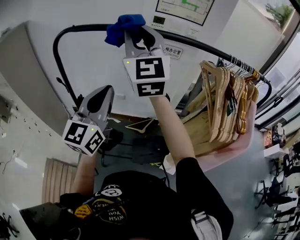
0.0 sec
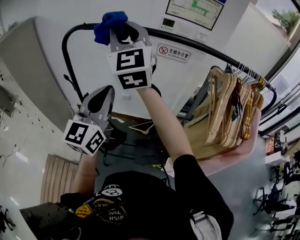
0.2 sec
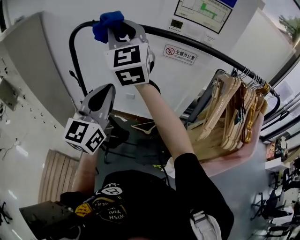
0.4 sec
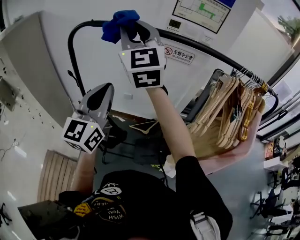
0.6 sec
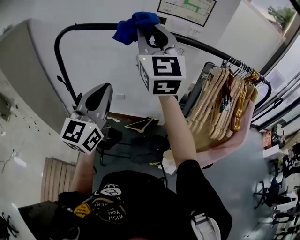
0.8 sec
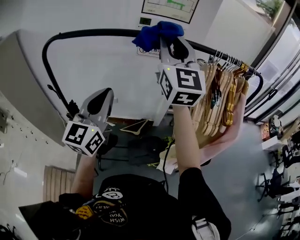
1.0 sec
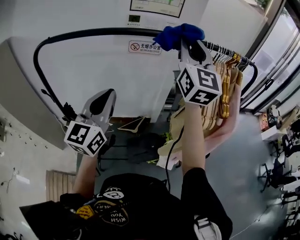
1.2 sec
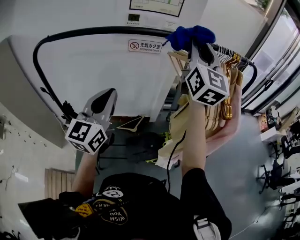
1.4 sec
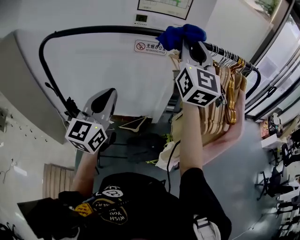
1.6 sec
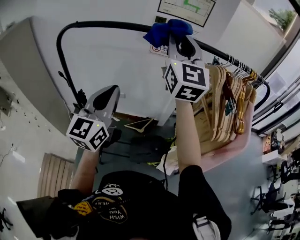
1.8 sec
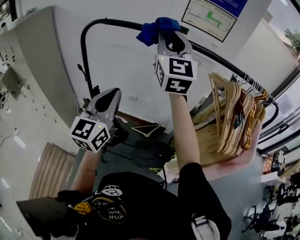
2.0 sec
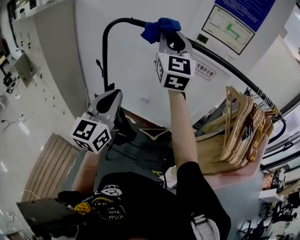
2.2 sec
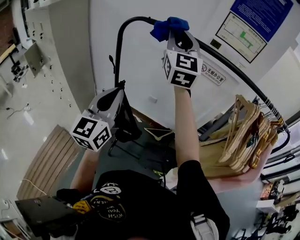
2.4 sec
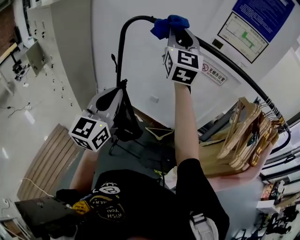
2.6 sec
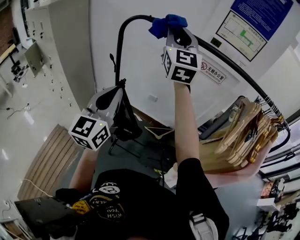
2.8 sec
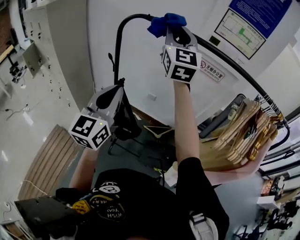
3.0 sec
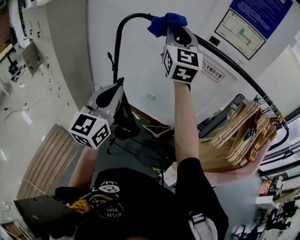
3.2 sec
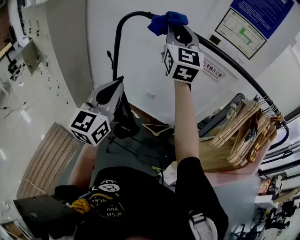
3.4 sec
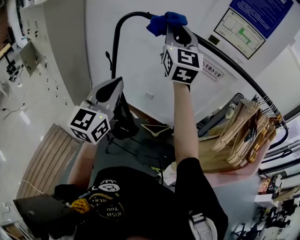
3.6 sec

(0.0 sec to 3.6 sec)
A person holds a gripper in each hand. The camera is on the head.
0.0 sec - 1.8 sec: The right gripper moves left and right over roughly 40 cm, changing direction 2 times. The left gripper swings left and right, roughly 15 cm each way, with 2 reversals.
1.8 sec - 3.6 sec: Both grippers move to the left, about 20 cm.

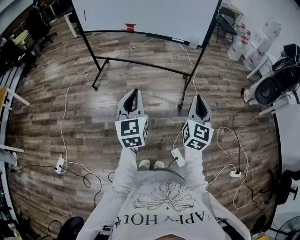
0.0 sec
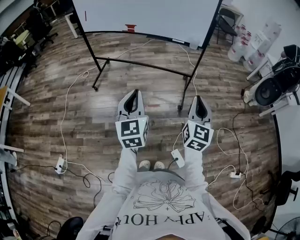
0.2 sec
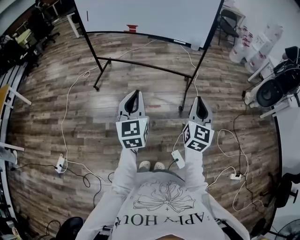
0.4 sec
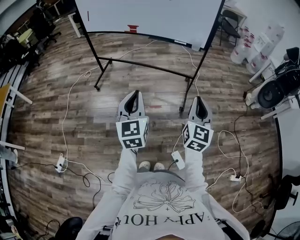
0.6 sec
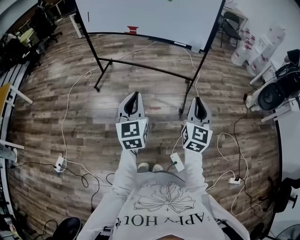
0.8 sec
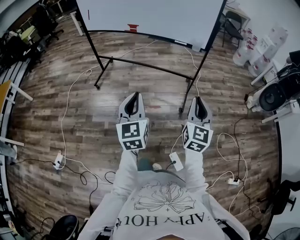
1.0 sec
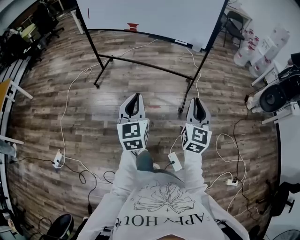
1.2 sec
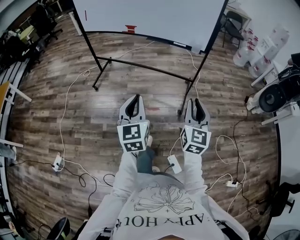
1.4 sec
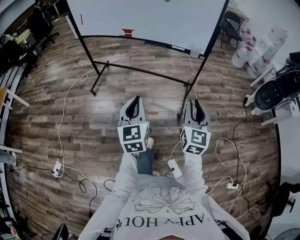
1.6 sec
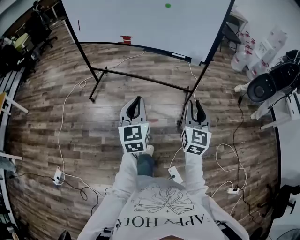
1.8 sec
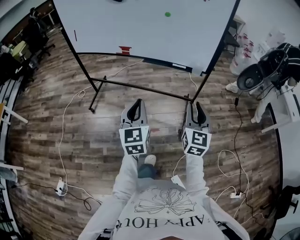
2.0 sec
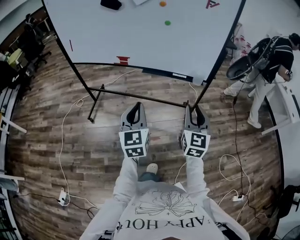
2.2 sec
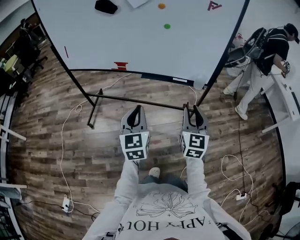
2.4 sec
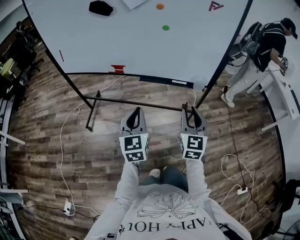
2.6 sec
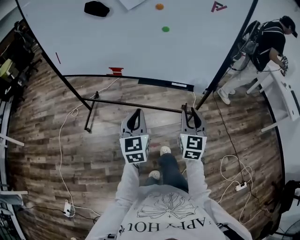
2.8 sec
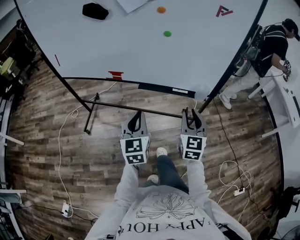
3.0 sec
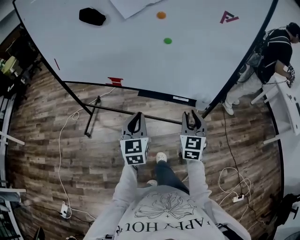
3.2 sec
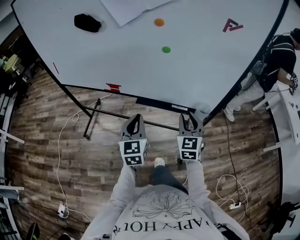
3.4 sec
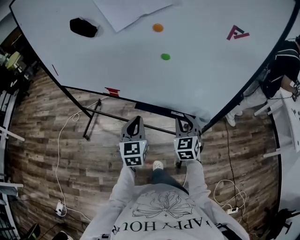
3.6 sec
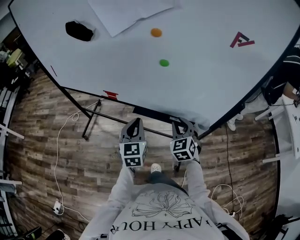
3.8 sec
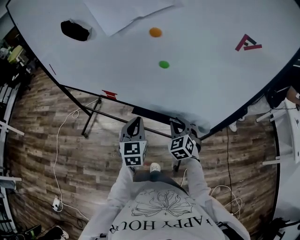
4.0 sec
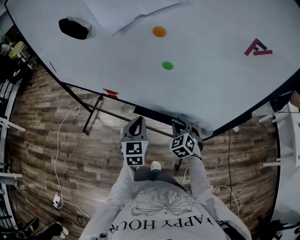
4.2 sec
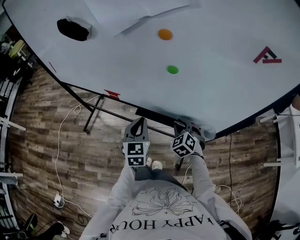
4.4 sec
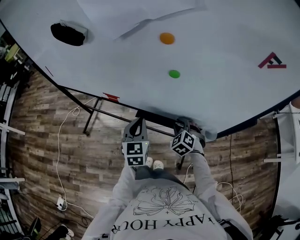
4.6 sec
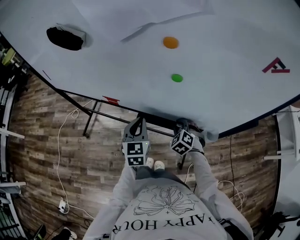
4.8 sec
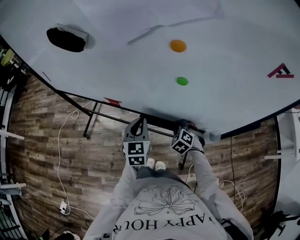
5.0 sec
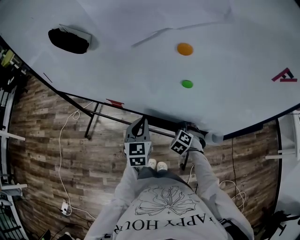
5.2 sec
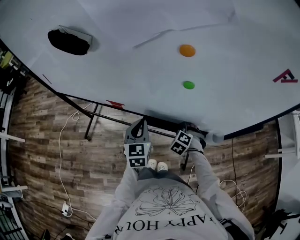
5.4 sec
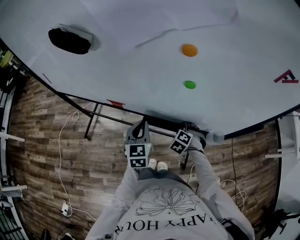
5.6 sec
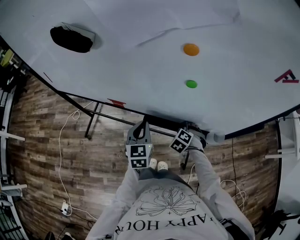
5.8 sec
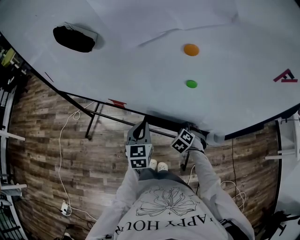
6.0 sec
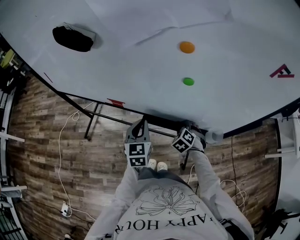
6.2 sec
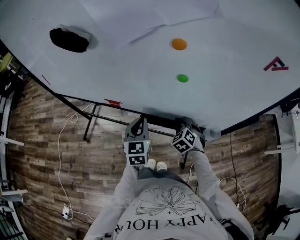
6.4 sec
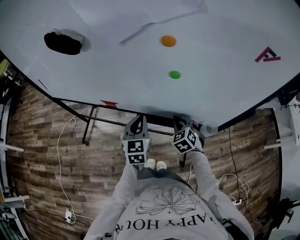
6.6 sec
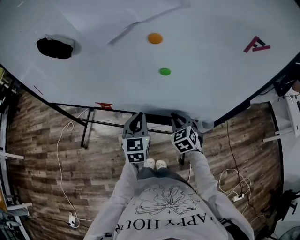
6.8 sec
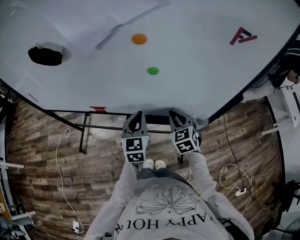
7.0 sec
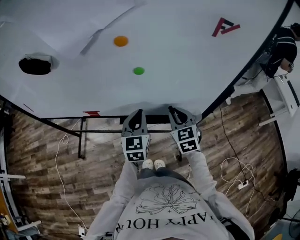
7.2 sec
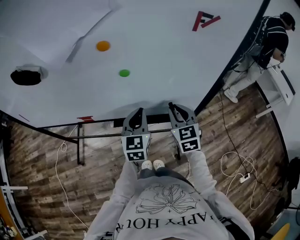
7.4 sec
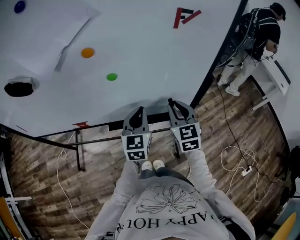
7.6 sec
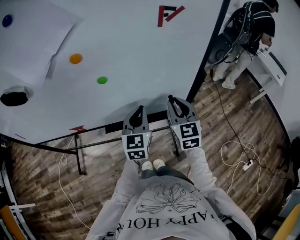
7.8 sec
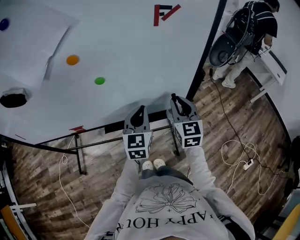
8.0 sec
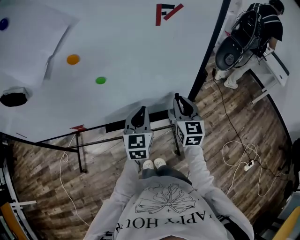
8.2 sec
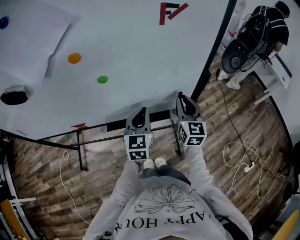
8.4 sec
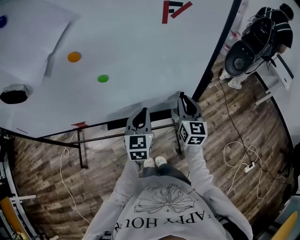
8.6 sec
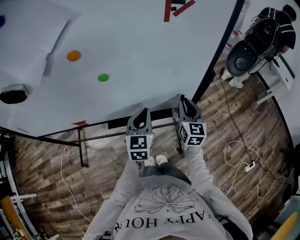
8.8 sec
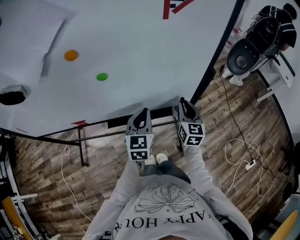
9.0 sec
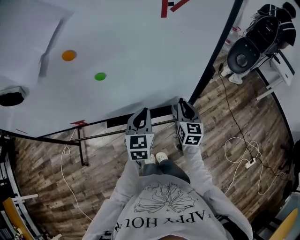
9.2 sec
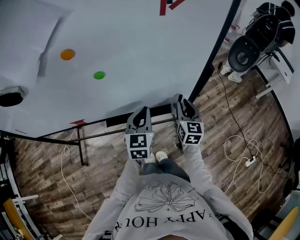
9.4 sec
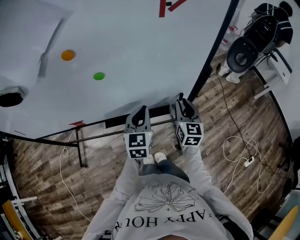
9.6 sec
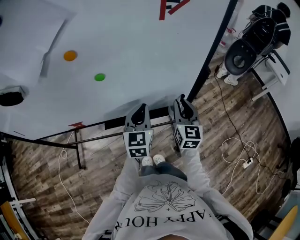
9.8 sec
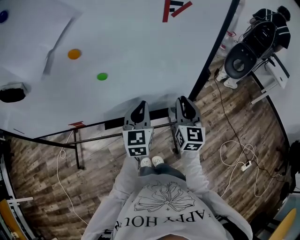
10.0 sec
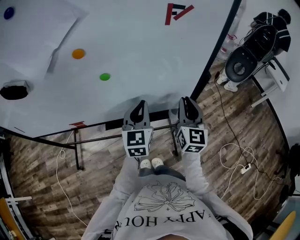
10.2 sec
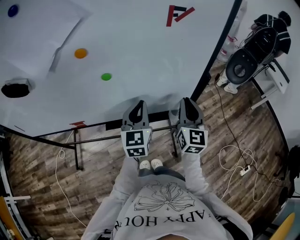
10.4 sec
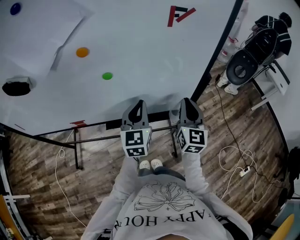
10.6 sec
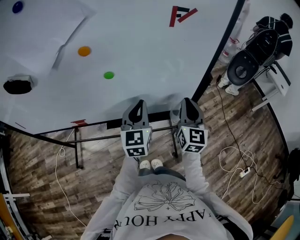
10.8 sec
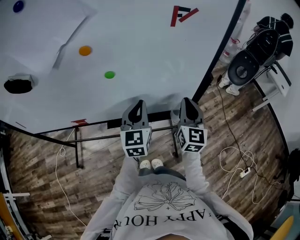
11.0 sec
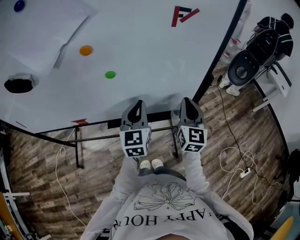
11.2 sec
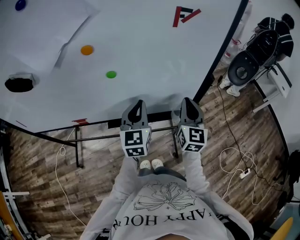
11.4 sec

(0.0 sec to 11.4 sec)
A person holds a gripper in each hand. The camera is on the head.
0.0 sec - 1.4 sec: The left gripper ends up approximately 5 cm from where it was. The right gripper travels forward by about 5 cm.
1.4 sec - 2.8 sec: The two grippers go some 35 cm forward.
2.8 sec - 4.2 sec: The right gripper heads forward and downward, covering some 30 cm, and turns by approximately 50 degrees, while the left gripper shifts approximately 25 cm forward.
4.2 sec - 5.6 sec: The right gripper is displaced downward by about 10 cm, and turns by some 30 degrees, while the left gripper shifts roughly 10 cm forward and to the left.
5.6 sec - 7.2 sec: The left gripper travels to the right and upward by approximately 15 cm, while the right gripper shifts some 20 cm upward, and angles its fingers upward, by about 40 degrees.
7.2 sec - 8.6 sec: Both grippers travel together to the right, about 10 cm. The right gripper turns by some 40 degrees.
8.6 sec - 10.0 sec: The right gripper moves roughly 5 cm downward and comes back.
10.0 sec - 11.4 sec: The grippers stay close to where they were, moving slightly.

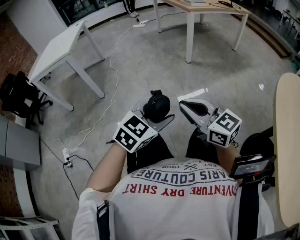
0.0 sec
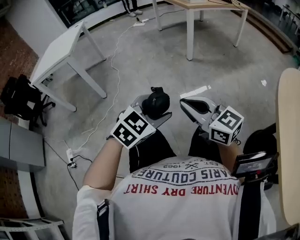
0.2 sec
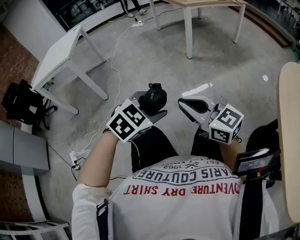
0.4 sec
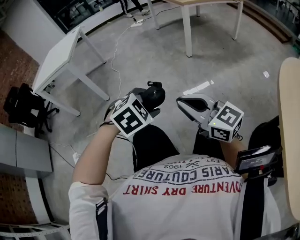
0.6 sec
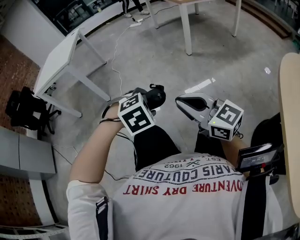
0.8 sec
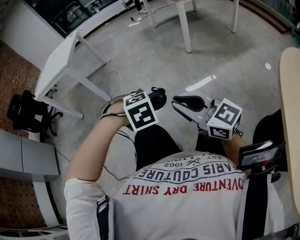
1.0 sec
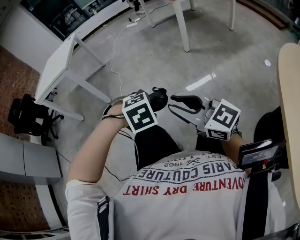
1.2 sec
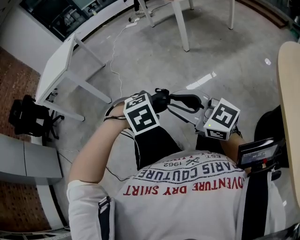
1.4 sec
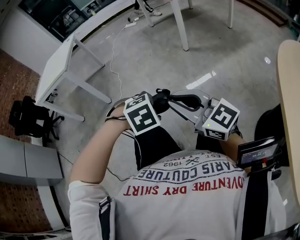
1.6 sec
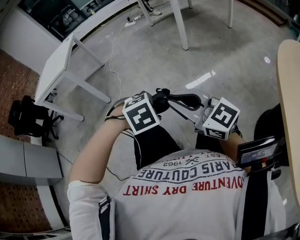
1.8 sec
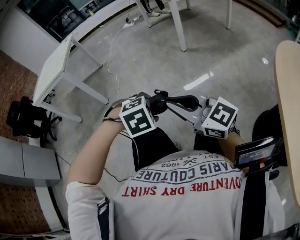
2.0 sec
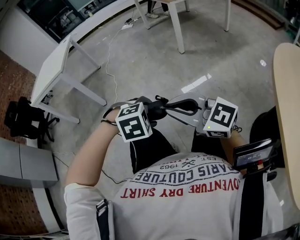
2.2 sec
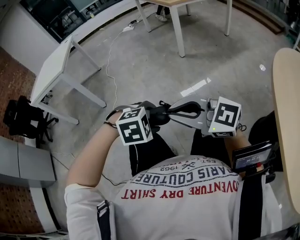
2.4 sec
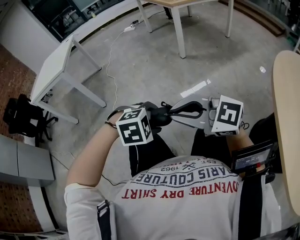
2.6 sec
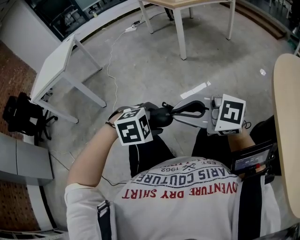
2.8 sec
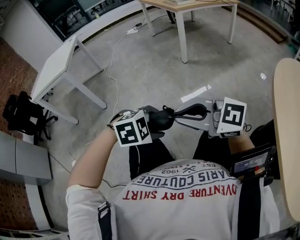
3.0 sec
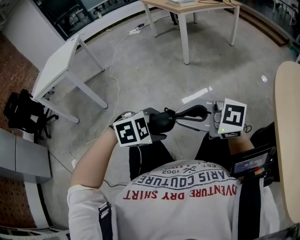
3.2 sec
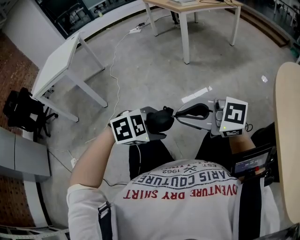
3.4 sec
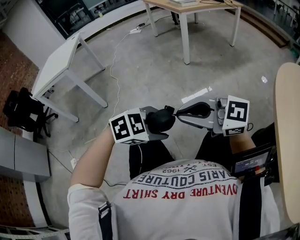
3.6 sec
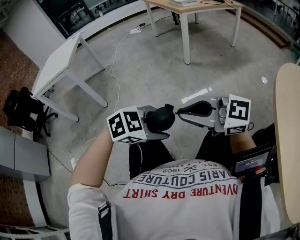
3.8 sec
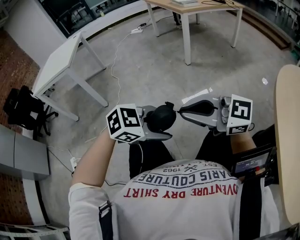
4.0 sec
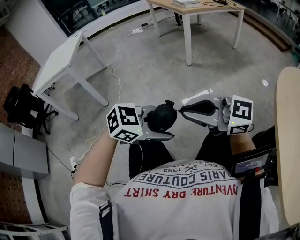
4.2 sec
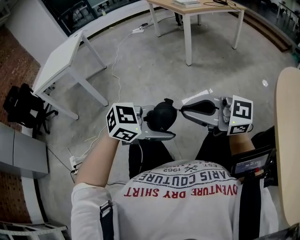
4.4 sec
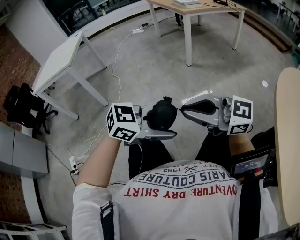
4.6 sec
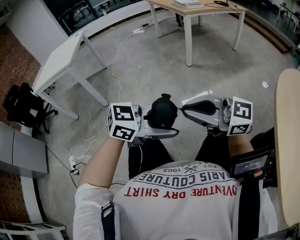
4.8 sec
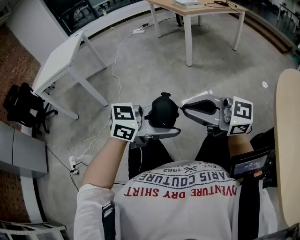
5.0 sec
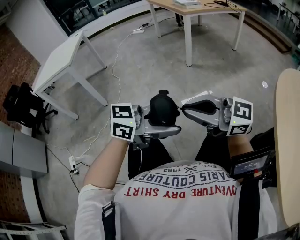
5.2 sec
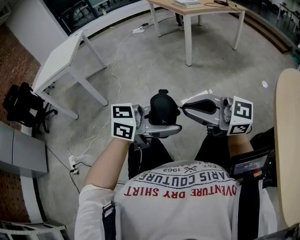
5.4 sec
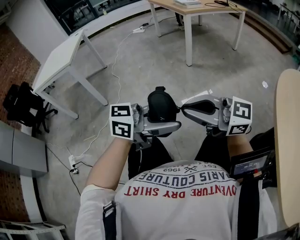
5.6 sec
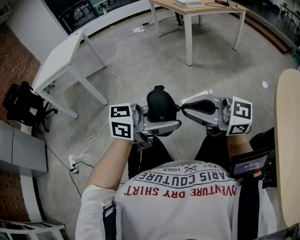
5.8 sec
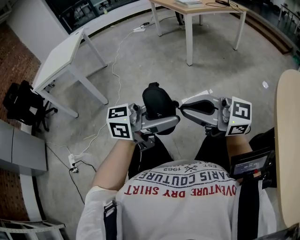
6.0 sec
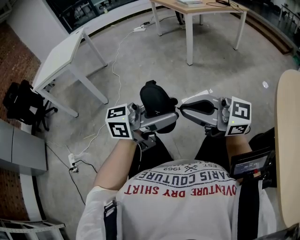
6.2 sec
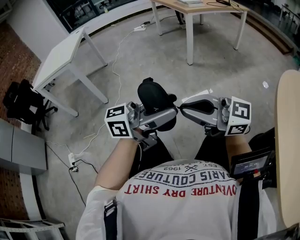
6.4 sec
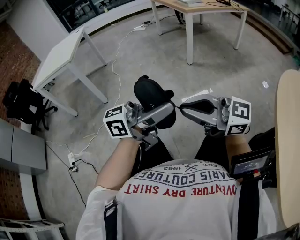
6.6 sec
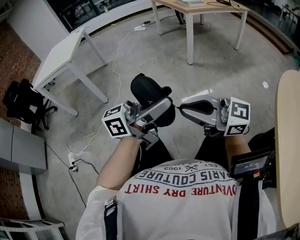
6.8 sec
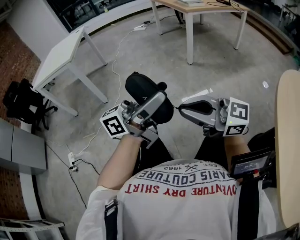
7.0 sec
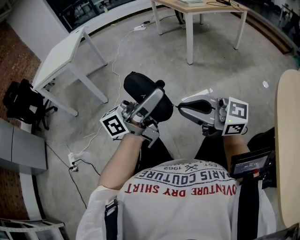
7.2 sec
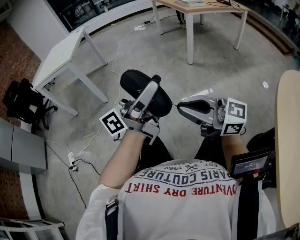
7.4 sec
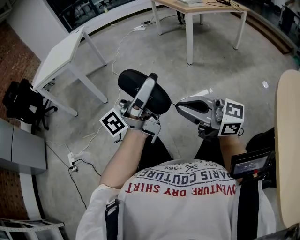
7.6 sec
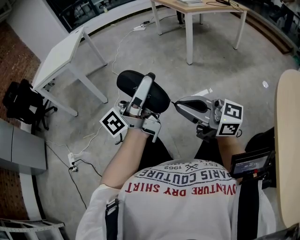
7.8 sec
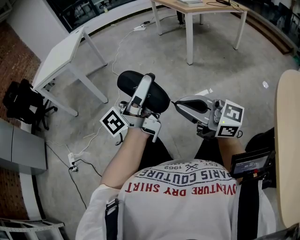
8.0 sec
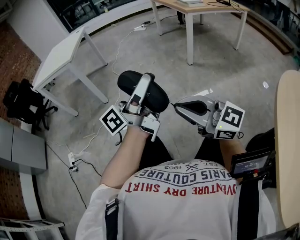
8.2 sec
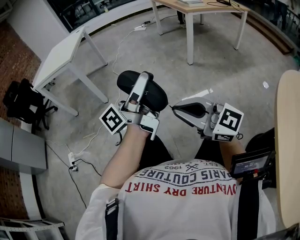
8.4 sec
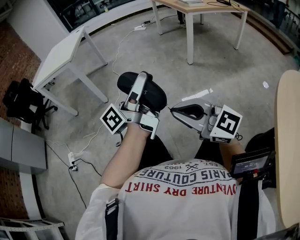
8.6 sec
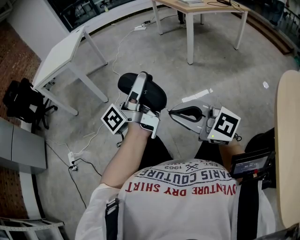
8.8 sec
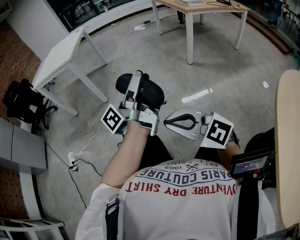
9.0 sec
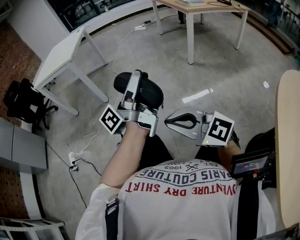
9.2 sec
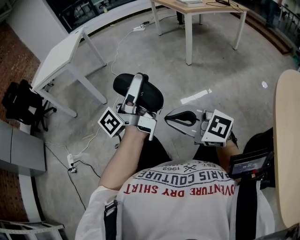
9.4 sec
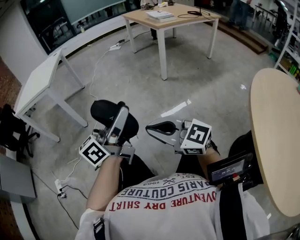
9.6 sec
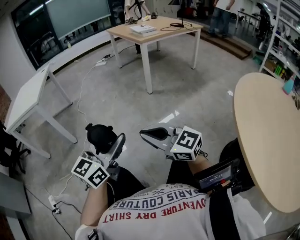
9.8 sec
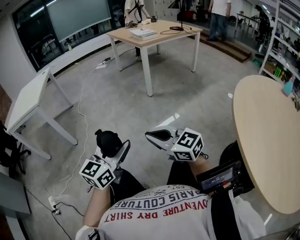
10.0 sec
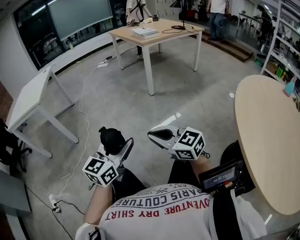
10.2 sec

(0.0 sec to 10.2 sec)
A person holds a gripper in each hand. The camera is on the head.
0.0 sec - 1.4 sec: The left gripper is displaced downward by some 5 cm, and tilts its fingers about 40 degrees downward; the right gripper opens up.
1.4 sec - 3.0 sec: The left gripper shifts by about 5 cm, and swivels roughly 20 degrees; the right gripper turns by roughly 20 degrees.
3.0 sec - 4.4 sec: The left gripper heads upward, covering some 5 cm, and tilts its fingers about 30 degrees upward.
4.4 sec - 5.8 sec: The left gripper is displaced upward by about 5 cm, and tips its fingers upward by some 30 degrees.
5.8 sec - 7.2 sec: The left gripper moves roughly 10 cm, and turns by about 40 degrees.
7.2 sec - 8.8 sec: The left gripper ends up some 5 cm from where it was, and rotates some 30 degrees, while the right gripper changes its angle by approximately 20 degrees.
8.8 sec - 10.2 sec: The right gripper travels to the right and downward by approximately 10 cm, and turns by roughly 20 degrees. The left gripper travels downward by some 10 cm, and rolls clockwise, seen from behind, by some 60 degrees.
